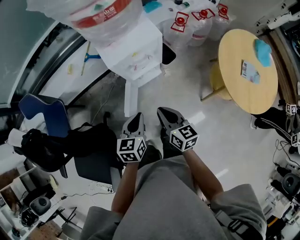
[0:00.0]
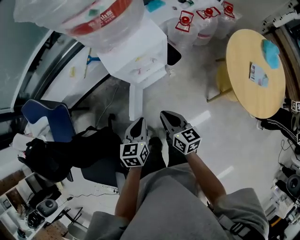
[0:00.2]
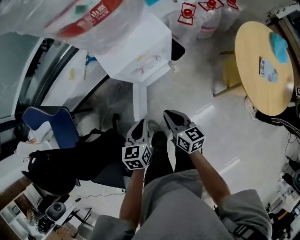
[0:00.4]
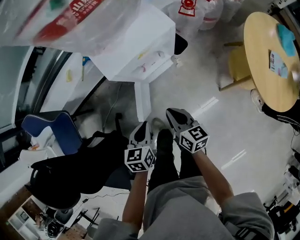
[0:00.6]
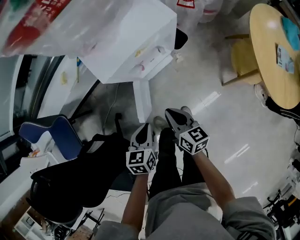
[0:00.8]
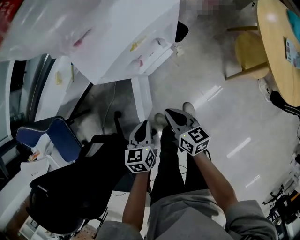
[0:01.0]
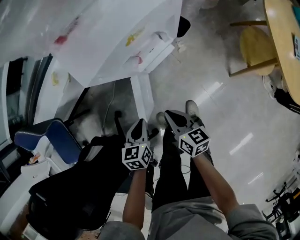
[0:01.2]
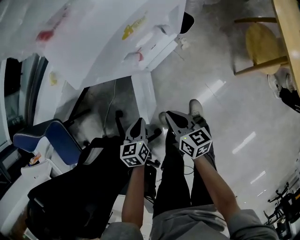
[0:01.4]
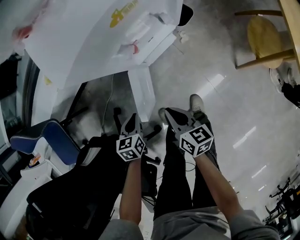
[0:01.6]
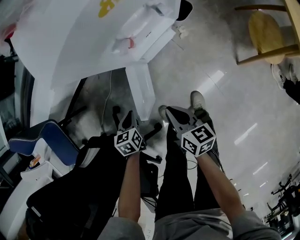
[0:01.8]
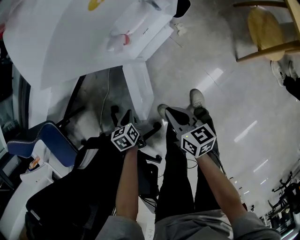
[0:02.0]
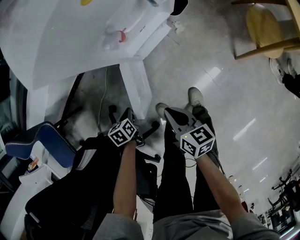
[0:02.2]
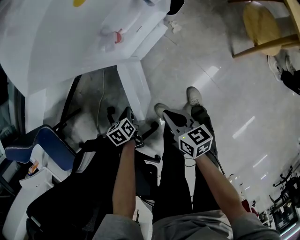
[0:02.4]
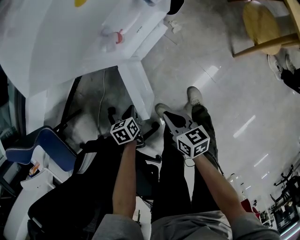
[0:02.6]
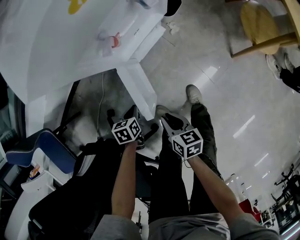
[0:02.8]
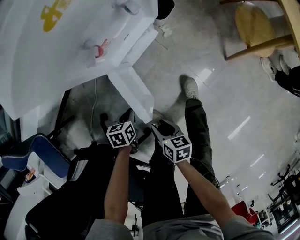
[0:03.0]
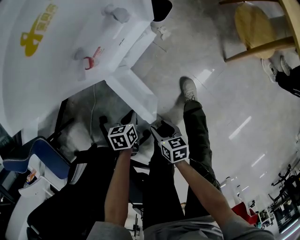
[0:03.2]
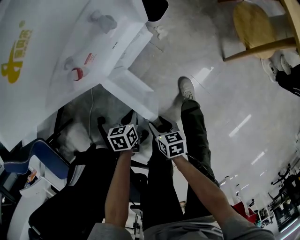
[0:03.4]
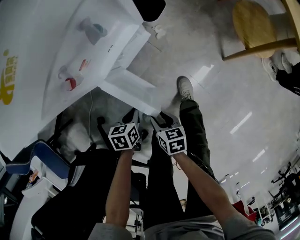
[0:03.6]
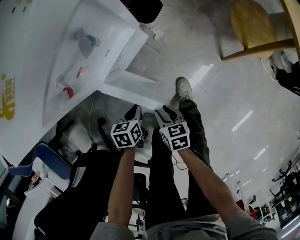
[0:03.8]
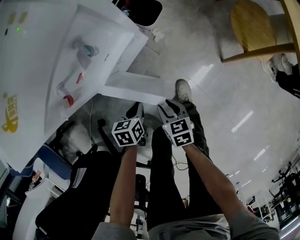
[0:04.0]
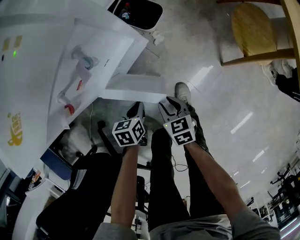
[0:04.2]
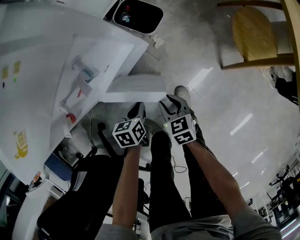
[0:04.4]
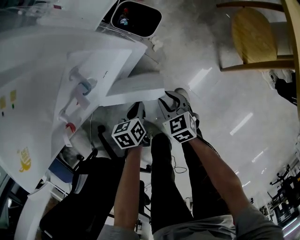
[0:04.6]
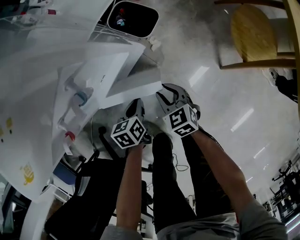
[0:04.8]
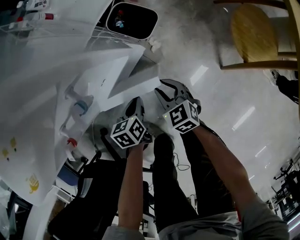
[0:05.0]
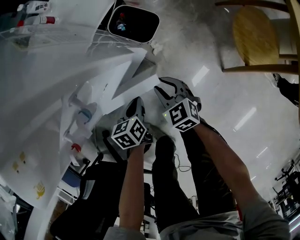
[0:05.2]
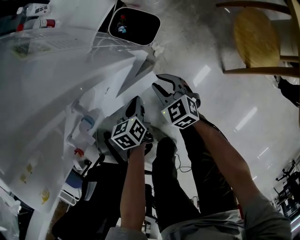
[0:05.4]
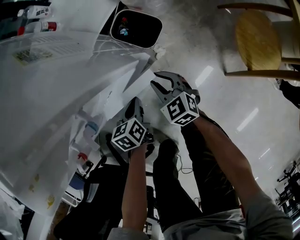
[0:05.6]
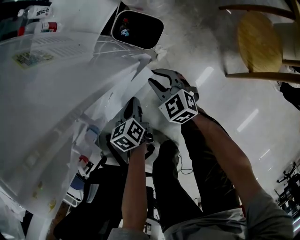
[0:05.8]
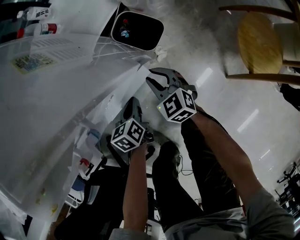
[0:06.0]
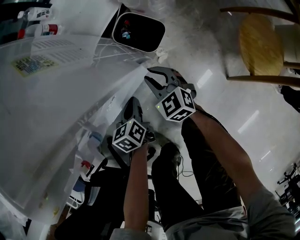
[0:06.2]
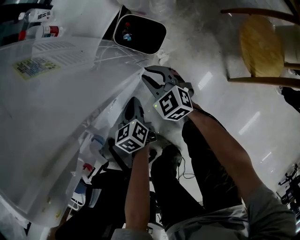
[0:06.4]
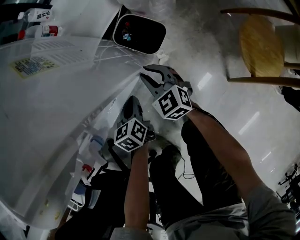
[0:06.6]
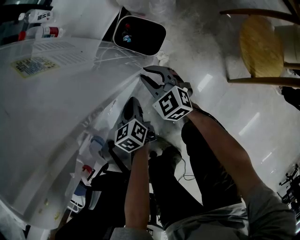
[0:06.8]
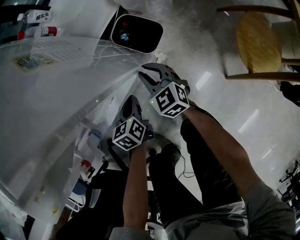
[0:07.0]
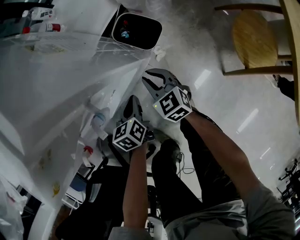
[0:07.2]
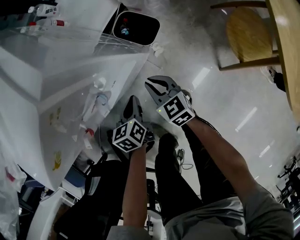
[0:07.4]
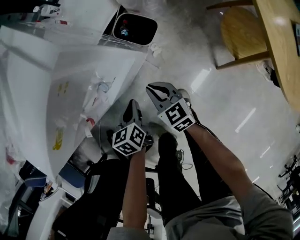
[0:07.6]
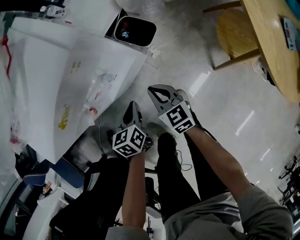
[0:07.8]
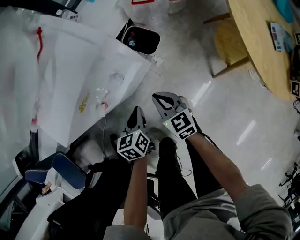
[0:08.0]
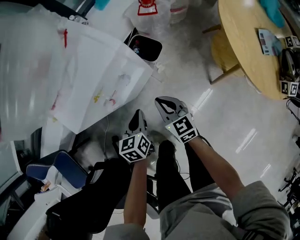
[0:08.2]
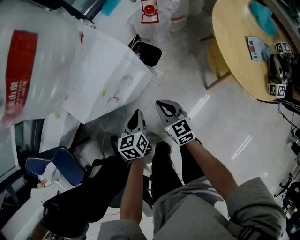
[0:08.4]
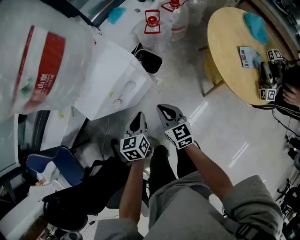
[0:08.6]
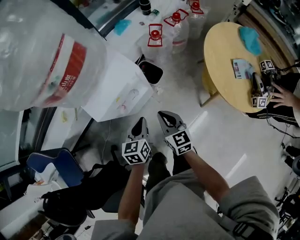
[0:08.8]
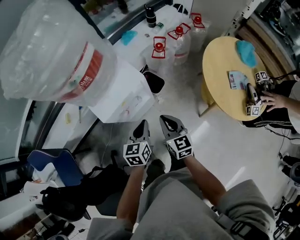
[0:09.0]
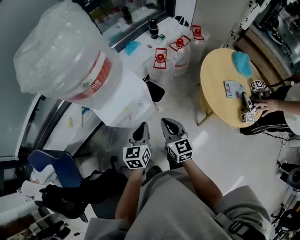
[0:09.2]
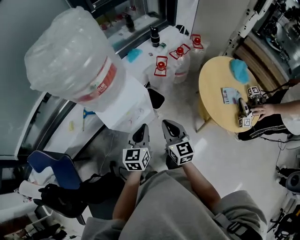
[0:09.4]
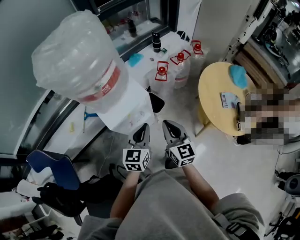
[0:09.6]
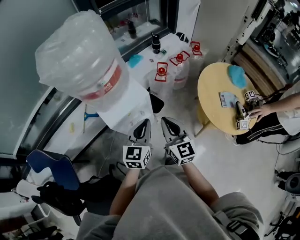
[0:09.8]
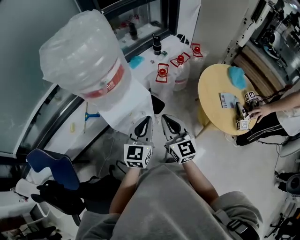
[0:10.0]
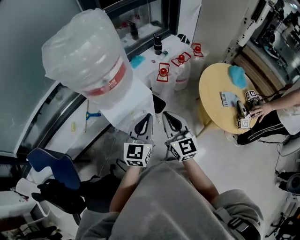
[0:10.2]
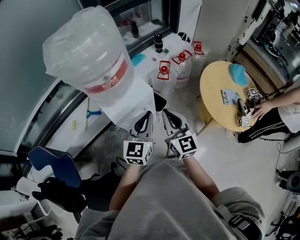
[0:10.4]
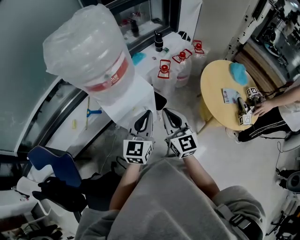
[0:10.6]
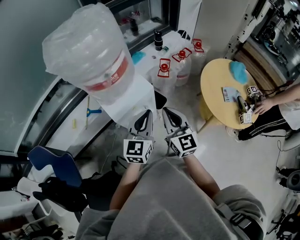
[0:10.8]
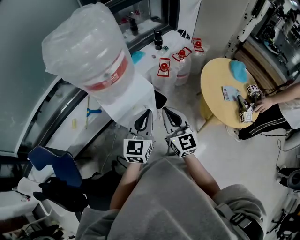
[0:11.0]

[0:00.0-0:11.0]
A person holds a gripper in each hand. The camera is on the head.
0:00.0 to 0:01.6: The left gripper heads downward and to the left, covering roughly 40 cm, and turns by roughly 20 degrees; the right gripper travels downward by approximately 30 cm, and turns by roughly 20 degrees.
0:01.6 to 0:03.2: The left gripper moves downward and to the right, approximately 15 cm, and turns by roughly 20 degrees. Meanwhile the right gripper heads downward and backward, covering some 15 cm, rotates approximately 20 degrees, and opens its fingers.
0:03.2 to 0:04.8: Both grippers travel together forward and to the right, roughly 25 cm. The right gripper rotates around the line of its fingers by roughly 40 degrees, counterclockwise from behind.
0:04.8 to 0:06.2: The left gripper shifts approximately 10 cm forward, while the right gripper goes some 15 cm forward.
0:06.2 to 0:07.8: The two grippers go about 15 cm upward and backward. The right gripper changes its angle by roughly 20 degrees, and closes.
0:07.8 to 0:09.4: The grippers both shift upward by approximately 40 cm. The right gripper rotates about 20 degrees, while the left gripper changes its angle by about 30 degrees.
0:09.4 to 0:11.0: Both grippers move upward, approximately 10 cm.

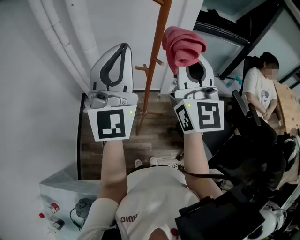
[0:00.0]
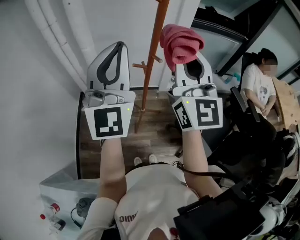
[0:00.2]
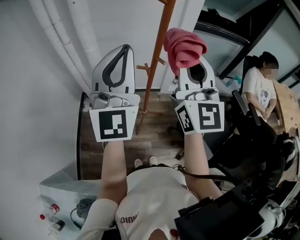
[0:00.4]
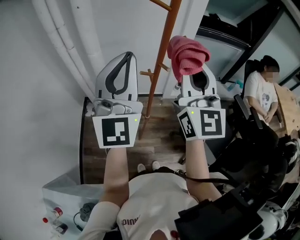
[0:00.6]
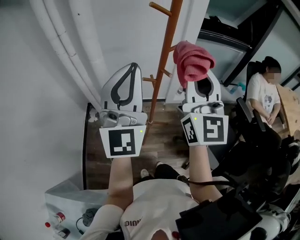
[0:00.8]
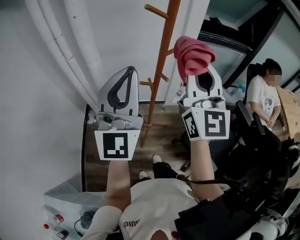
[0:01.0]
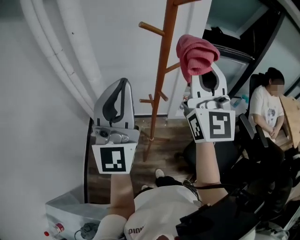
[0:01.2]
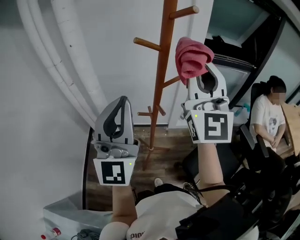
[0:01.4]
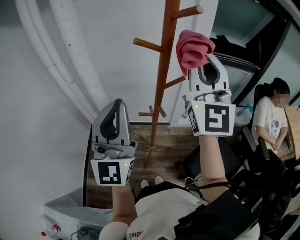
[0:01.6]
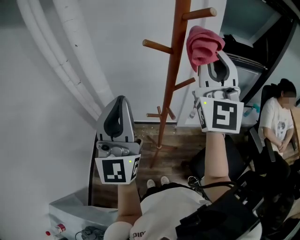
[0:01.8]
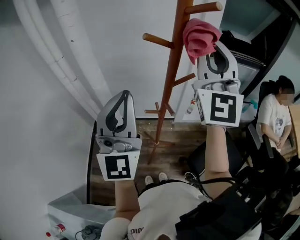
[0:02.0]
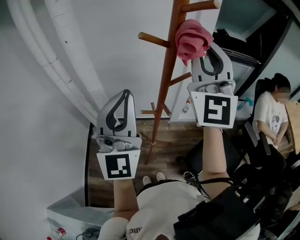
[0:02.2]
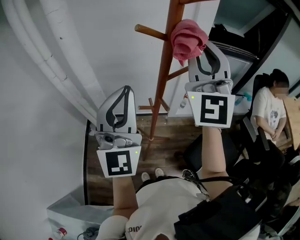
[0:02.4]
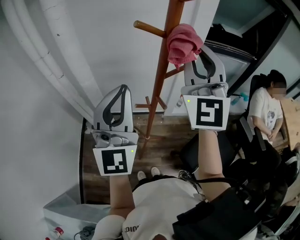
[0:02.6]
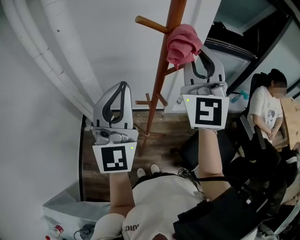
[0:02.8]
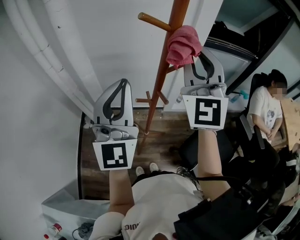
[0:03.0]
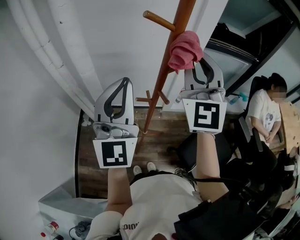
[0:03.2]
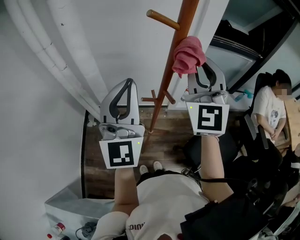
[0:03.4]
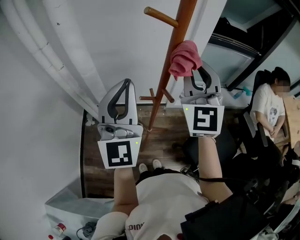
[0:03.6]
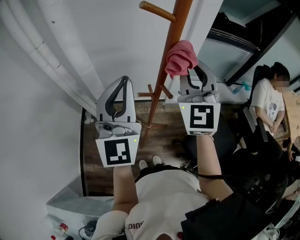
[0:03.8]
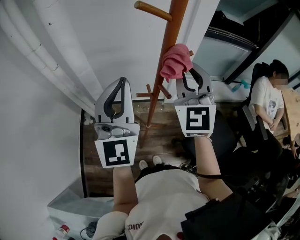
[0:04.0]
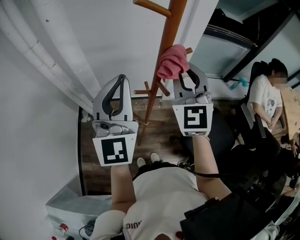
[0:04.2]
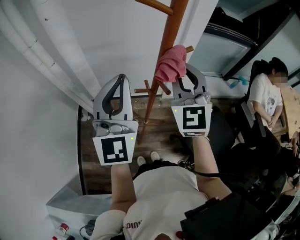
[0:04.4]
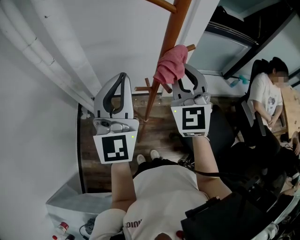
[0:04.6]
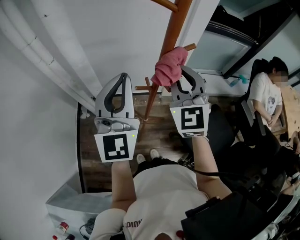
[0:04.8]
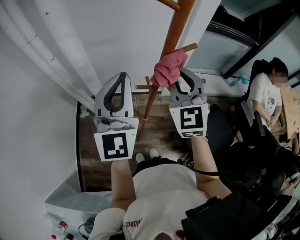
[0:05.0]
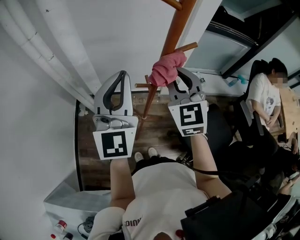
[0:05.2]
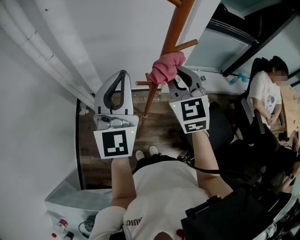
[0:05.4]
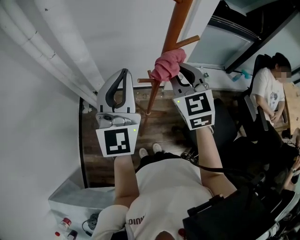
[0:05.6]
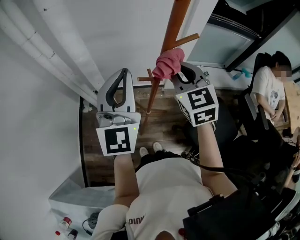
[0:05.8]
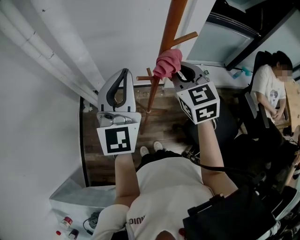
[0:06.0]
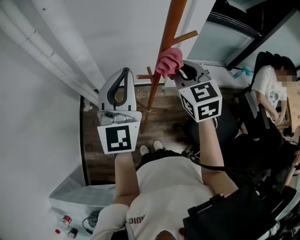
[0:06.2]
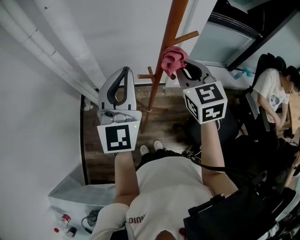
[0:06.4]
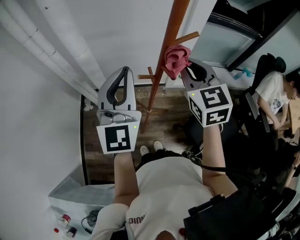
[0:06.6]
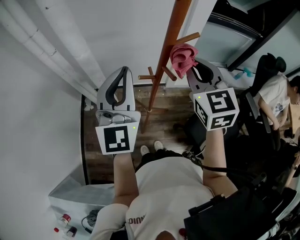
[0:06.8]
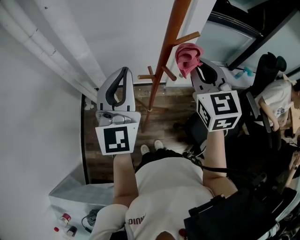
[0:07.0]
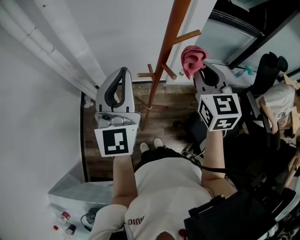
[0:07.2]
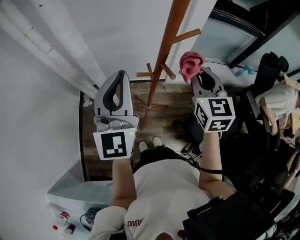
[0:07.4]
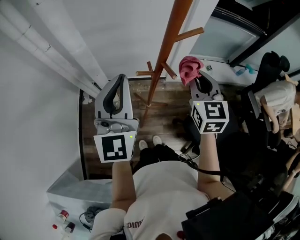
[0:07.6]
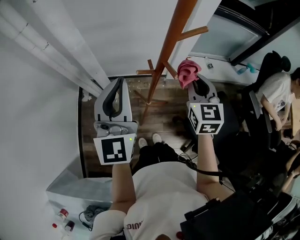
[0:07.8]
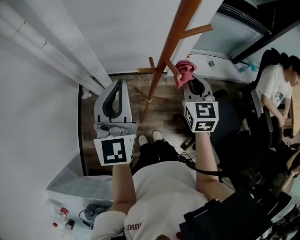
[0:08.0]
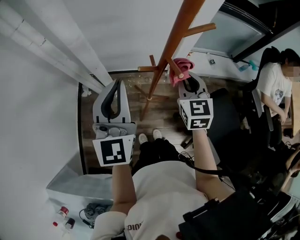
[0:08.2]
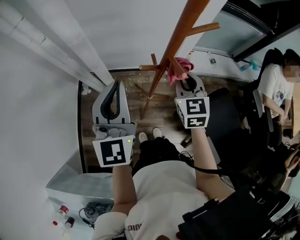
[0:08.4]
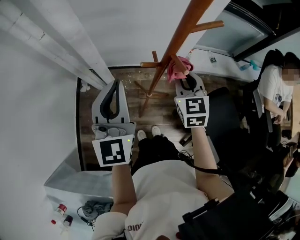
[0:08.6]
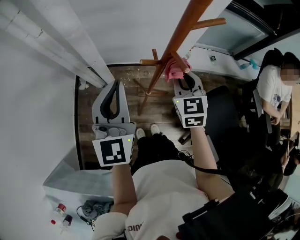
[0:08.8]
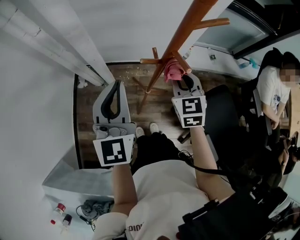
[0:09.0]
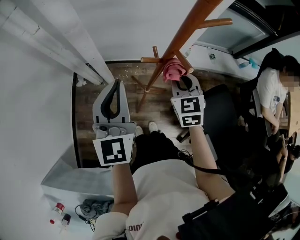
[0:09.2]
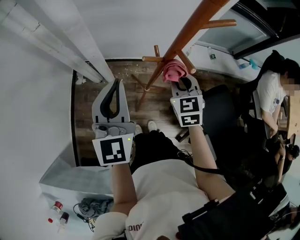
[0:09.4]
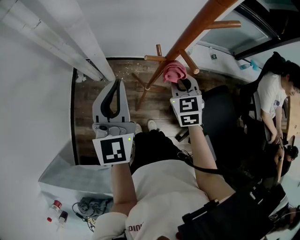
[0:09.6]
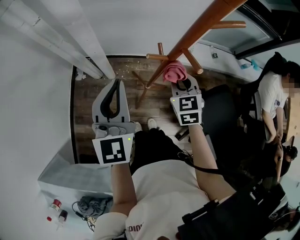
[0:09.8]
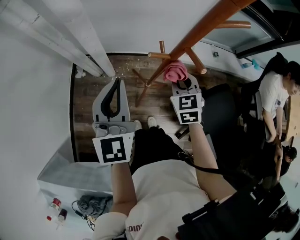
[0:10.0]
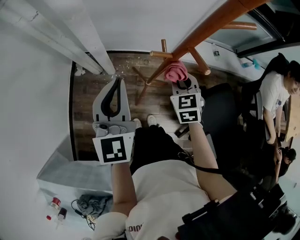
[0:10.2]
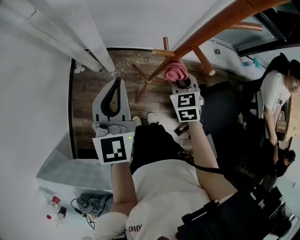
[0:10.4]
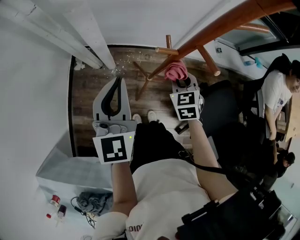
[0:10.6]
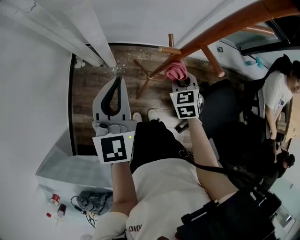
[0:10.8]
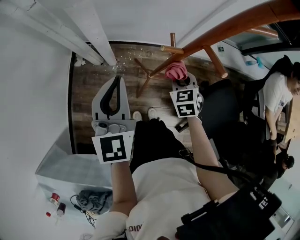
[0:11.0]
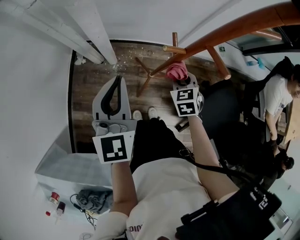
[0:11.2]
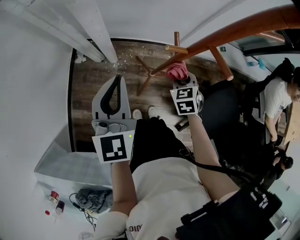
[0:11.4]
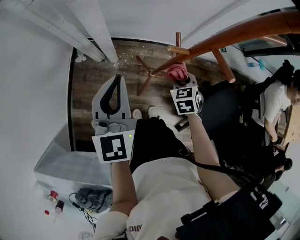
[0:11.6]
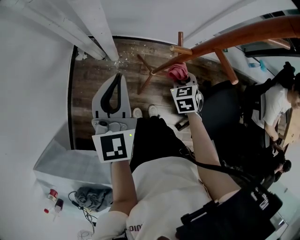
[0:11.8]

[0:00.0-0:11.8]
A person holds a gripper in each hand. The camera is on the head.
0:00.0 to 0:01.4: The right gripper travels forward and upward by roughly 10 cm.
0:01.4 to 0:03.0: The grippers both shift forward by roughly 5 cm.
0:03.0 to 0:04.4: The right gripper is displaced downward by approximately 15 cm, and changes its angle by roughly 20 degrees.
0:04.4 to 0:06.0: The right gripper shifts approximately 5 cm downward, and turns by some 30 degrees.
0:06.0 to 0:07.4: The right gripper travels to the right by approximately 5 cm.
0:07.4 to 0:08.8: The left gripper is displaced downward by some 10 cm. Meanwhile the right gripper heads downward and to the left, covering some 15 cm.
0:08.8 to 0:10.4: The right gripper travels downward by approximately 10 cm. Meanwhile the left gripper moves downward, about 5 cm.
0:10.4 to 0:11.8: The right gripper goes about 10 cm downward.

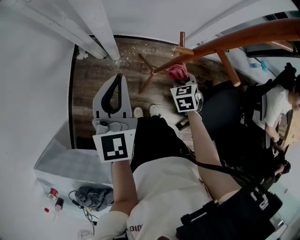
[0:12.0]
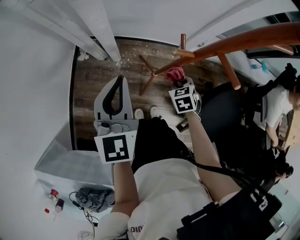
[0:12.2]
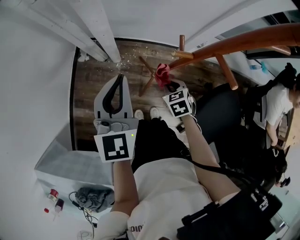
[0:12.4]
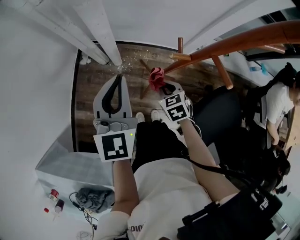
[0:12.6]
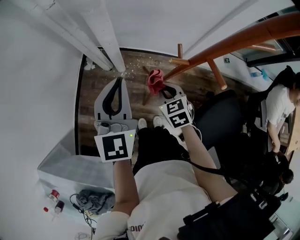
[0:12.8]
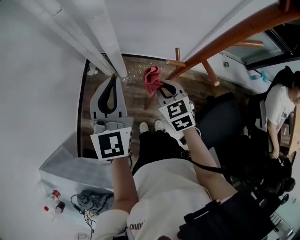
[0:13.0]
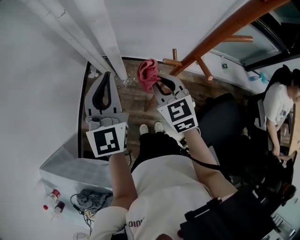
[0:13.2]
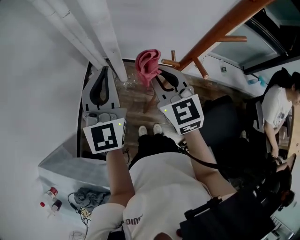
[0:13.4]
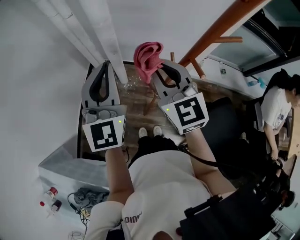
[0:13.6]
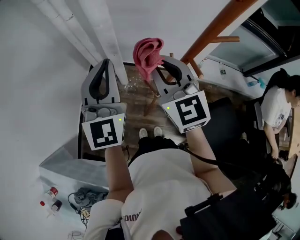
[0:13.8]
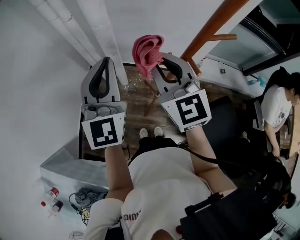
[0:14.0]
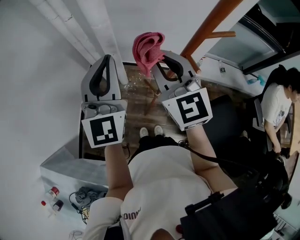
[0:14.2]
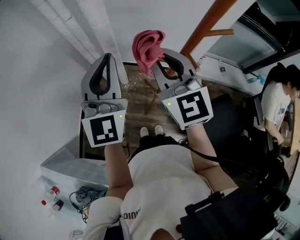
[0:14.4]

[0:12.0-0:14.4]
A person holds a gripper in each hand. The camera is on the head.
0:12.0 to 0:13.2: The left gripper goes about 10 cm upward. Meanwhile the right gripper shifts roughly 25 cm upward and to the left, and swivels approximately 30 degrees.
0:13.2 to 0:14.4: The left gripper is displaced upward by roughly 10 cm, while the right gripper shifts about 20 cm upward, and swivels roughly 30 degrees.
